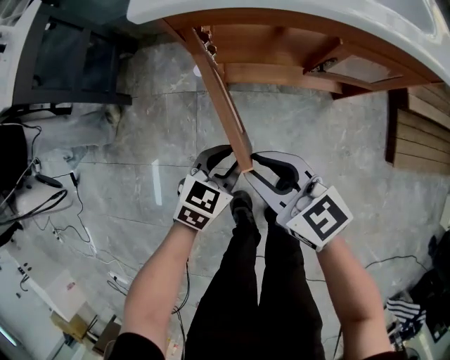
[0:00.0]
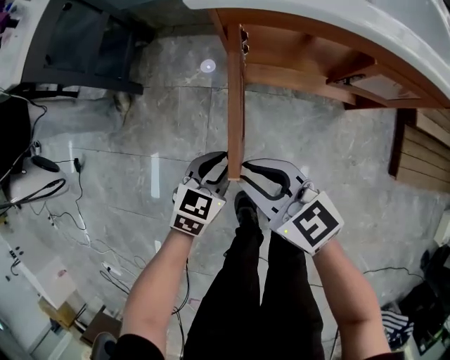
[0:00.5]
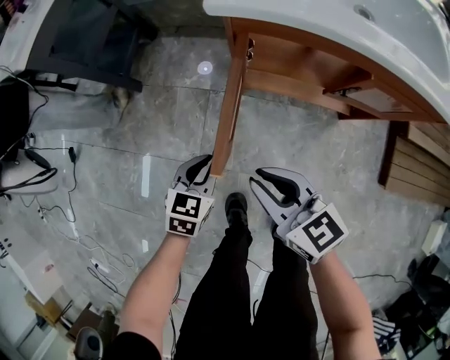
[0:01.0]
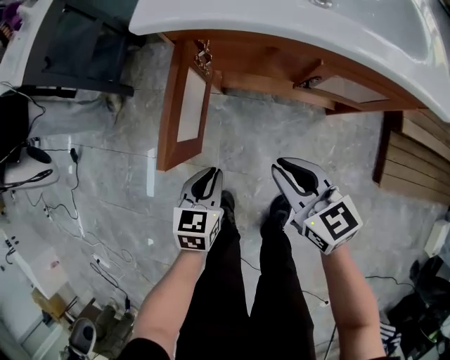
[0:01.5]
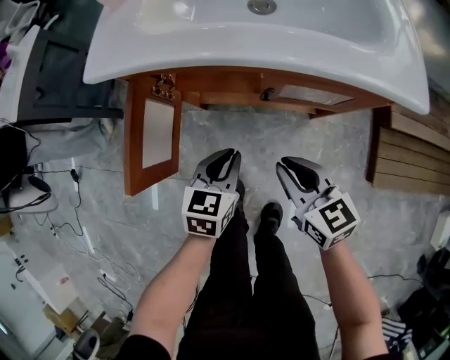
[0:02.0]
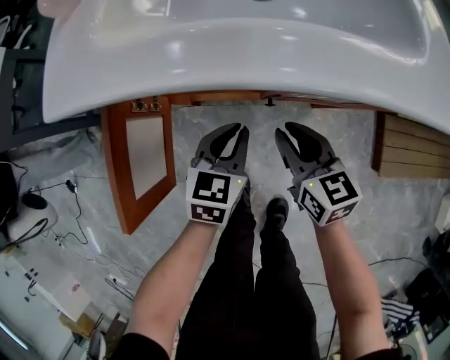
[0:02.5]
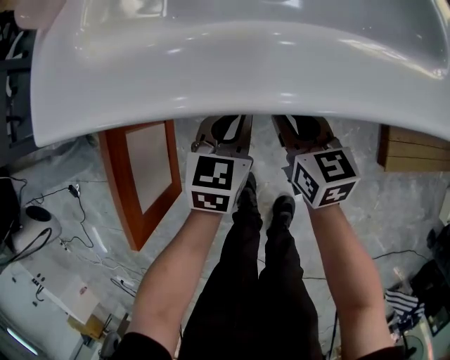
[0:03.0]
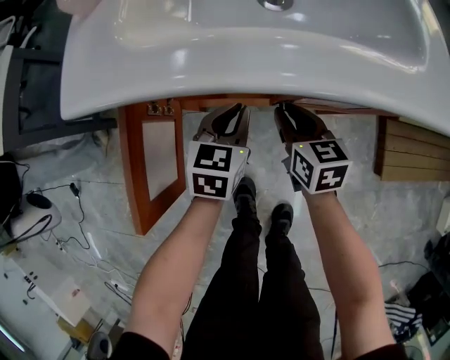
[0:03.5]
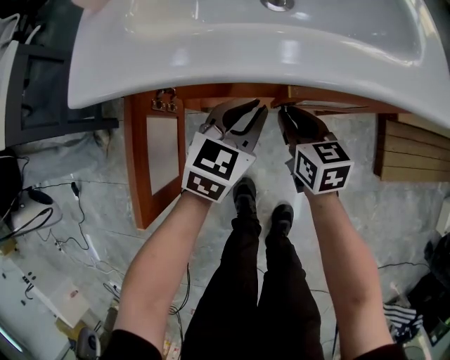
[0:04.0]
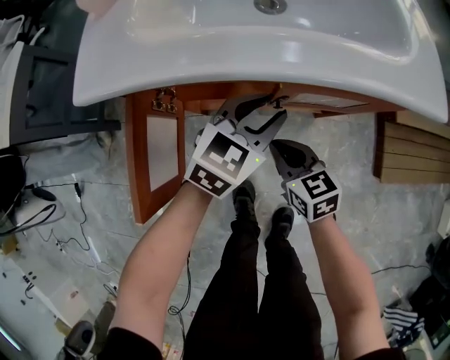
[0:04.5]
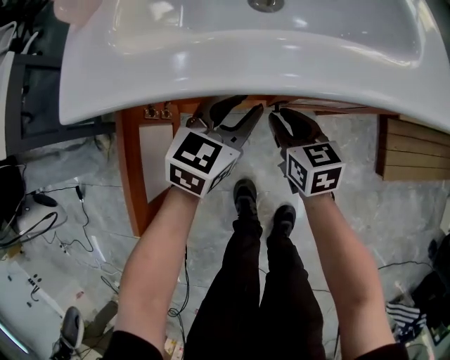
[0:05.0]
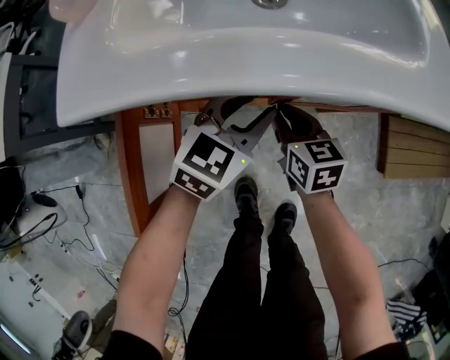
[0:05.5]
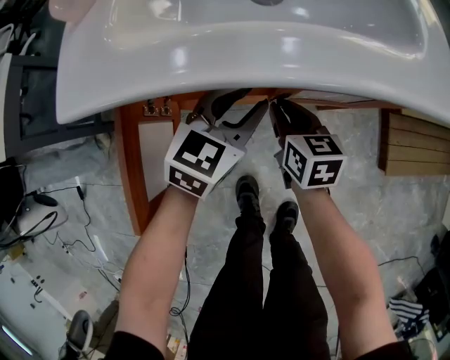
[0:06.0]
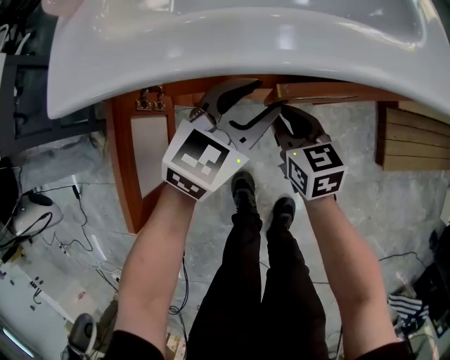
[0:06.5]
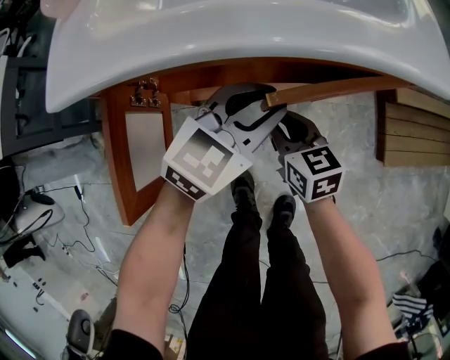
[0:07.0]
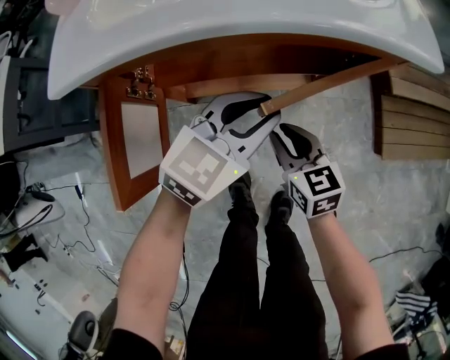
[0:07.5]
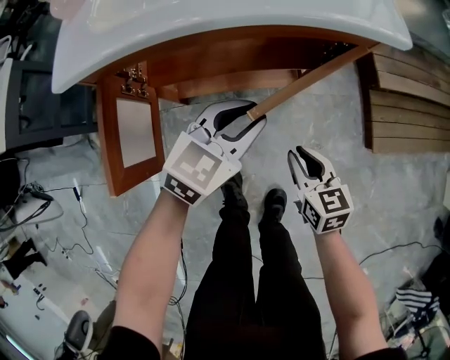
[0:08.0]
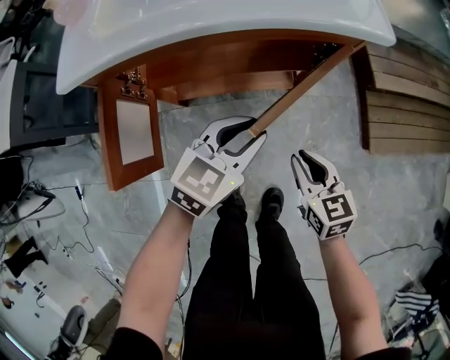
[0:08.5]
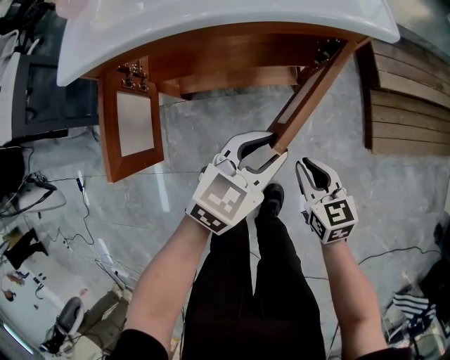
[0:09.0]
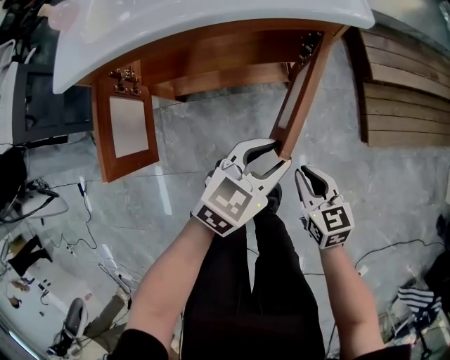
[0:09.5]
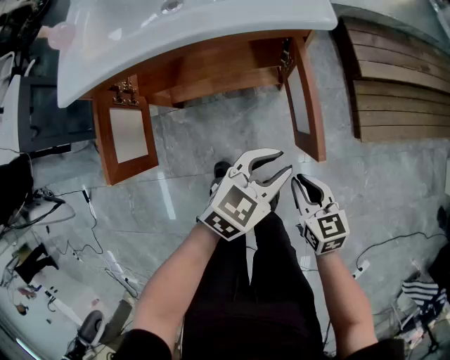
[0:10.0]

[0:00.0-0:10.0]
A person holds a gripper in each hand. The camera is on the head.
0:00.0 to 0:02.0: The right gripper is displaced to the right by some 25 cm. The left gripper is displaced to the right by approximately 15 cm, and changes its angle by some 20 degrees.
0:02.0 to 0:04.0: The right gripper shifts about 15 cm forward and downward, and changes its angle by some 20 degrees, while the left gripper is displaced forward by roughly 15 cm, and swivels some 20 degrees.
0:04.0 to 0:06.0: The left gripper opens; the right gripper travels backward and back again, roughly 10 cm each way.
0:06.0 to 0:08.0: The left gripper moves to the right and backward, about 15 cm. The right gripper is displaced backward and to the right by roughly 25 cm.
0:08.0 to 0:10.0: Both grippers travel together to the right and backward, roughly 15 cm.

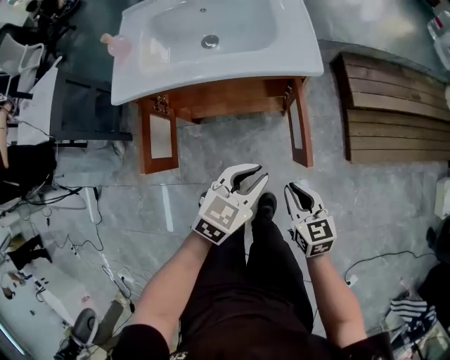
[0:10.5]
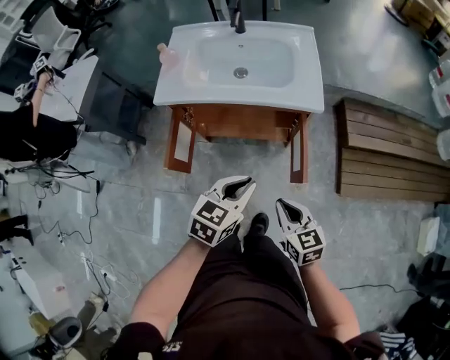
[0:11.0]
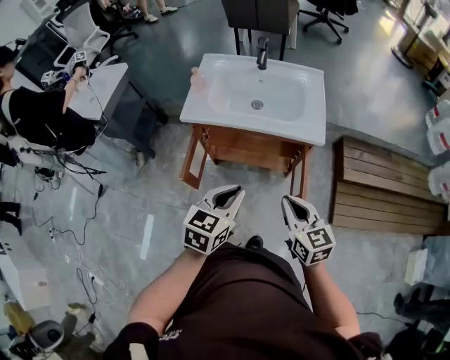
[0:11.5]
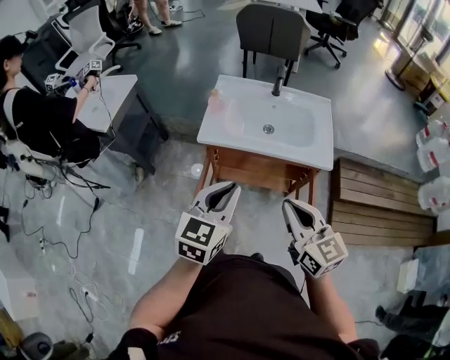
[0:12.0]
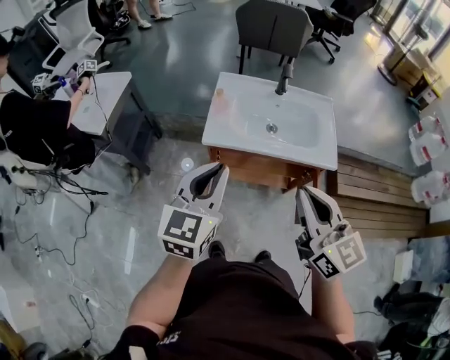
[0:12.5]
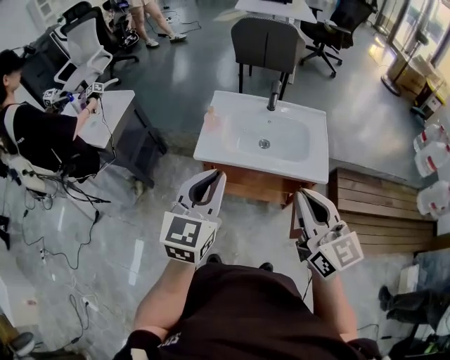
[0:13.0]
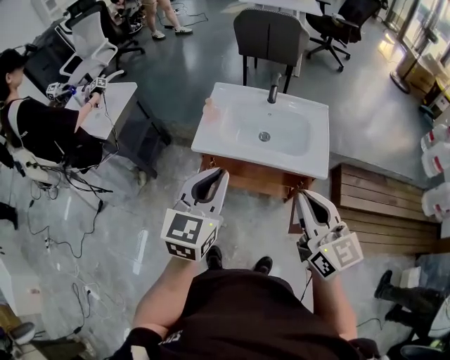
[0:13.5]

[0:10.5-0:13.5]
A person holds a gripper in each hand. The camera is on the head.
0:10.5 to 0:12.0: Both grippers move upward and to the left, about 40 cm. The right gripper rotates approximately 30 degrees; the left gripper swivels approximately 40 degrees.
0:12.0 to 0:13.5: The left gripper travels upward and forward by roughly 10 cm, and reaches about 10 cm to the left, then returns. Meanwhile the right gripper heads upward and to the right, covering about 10 cm.

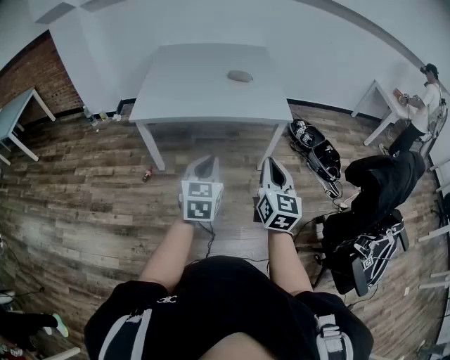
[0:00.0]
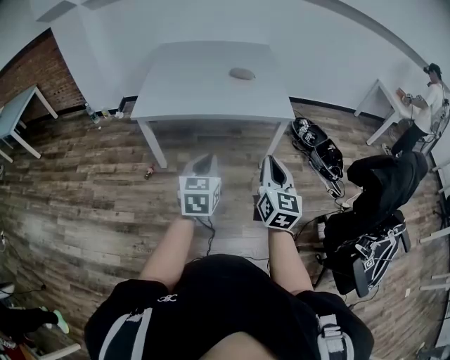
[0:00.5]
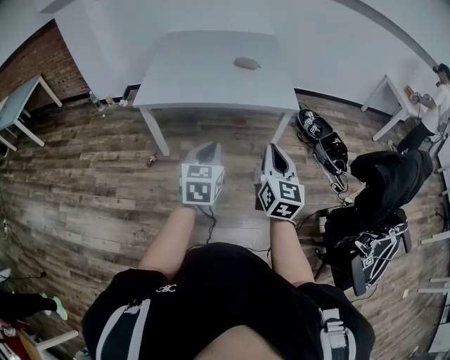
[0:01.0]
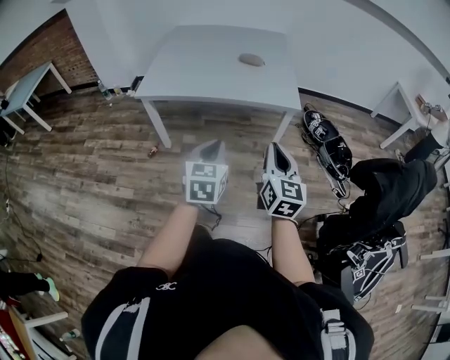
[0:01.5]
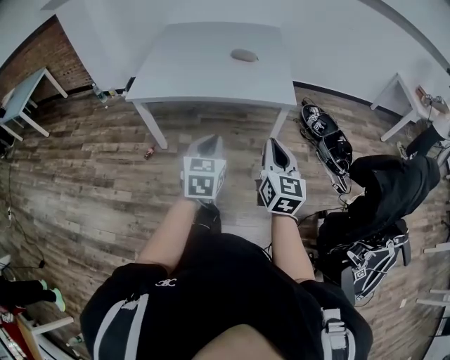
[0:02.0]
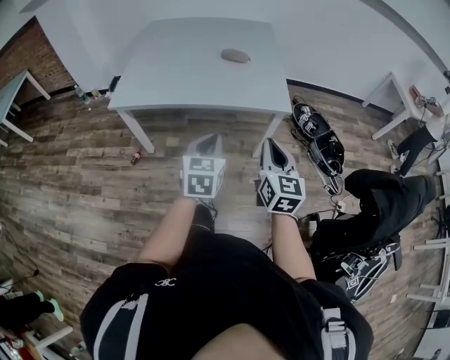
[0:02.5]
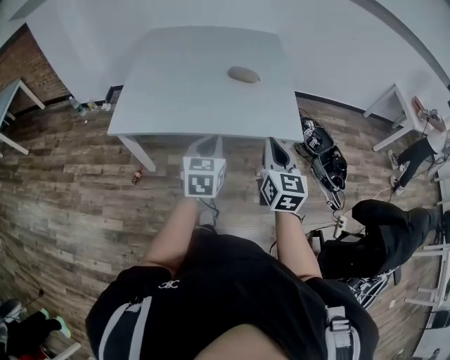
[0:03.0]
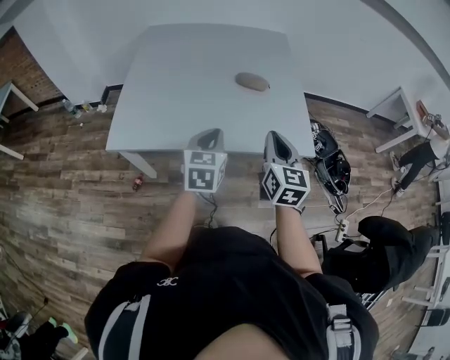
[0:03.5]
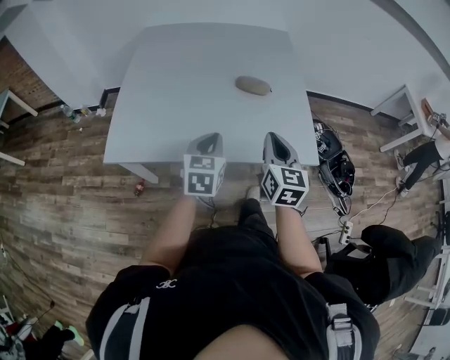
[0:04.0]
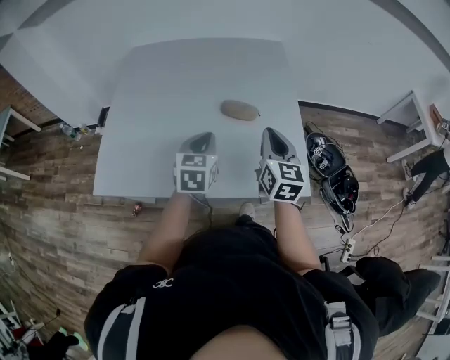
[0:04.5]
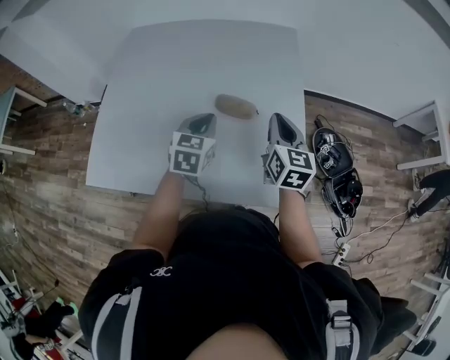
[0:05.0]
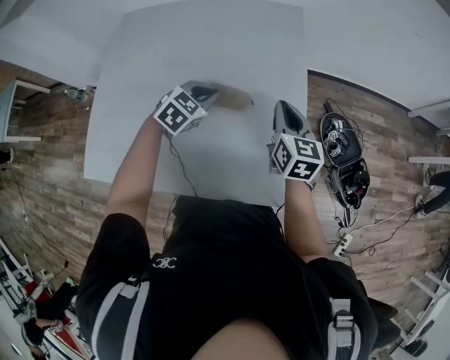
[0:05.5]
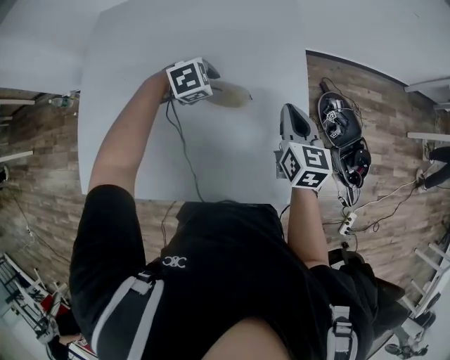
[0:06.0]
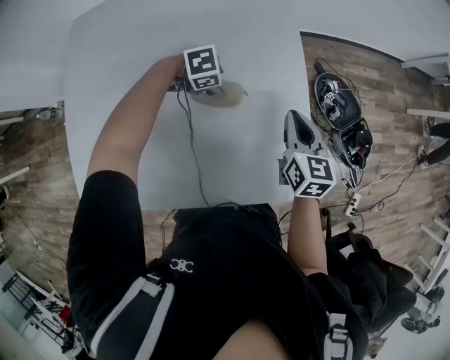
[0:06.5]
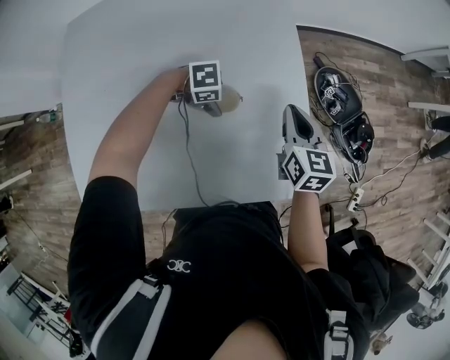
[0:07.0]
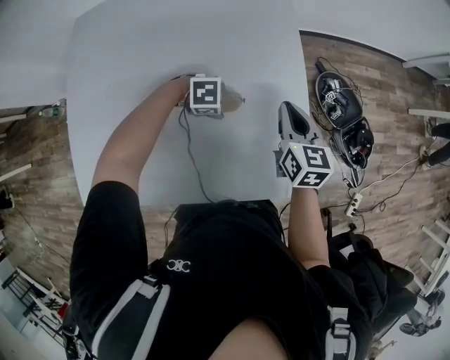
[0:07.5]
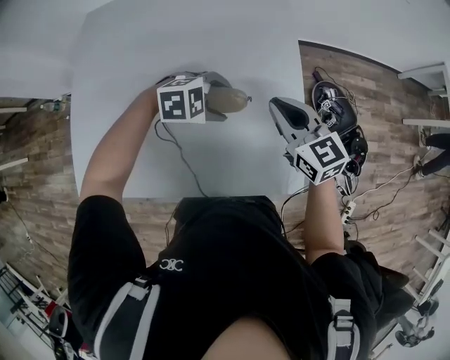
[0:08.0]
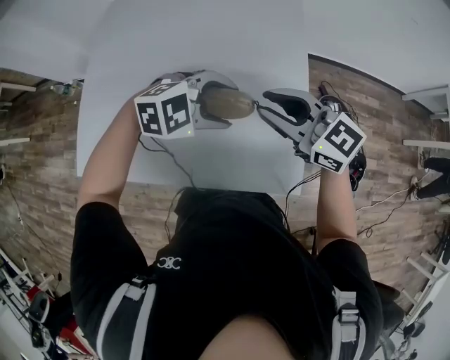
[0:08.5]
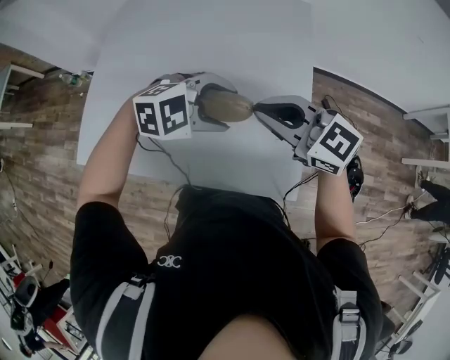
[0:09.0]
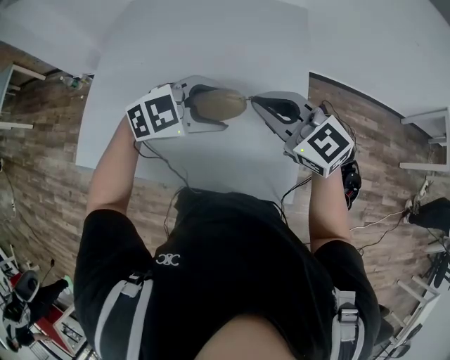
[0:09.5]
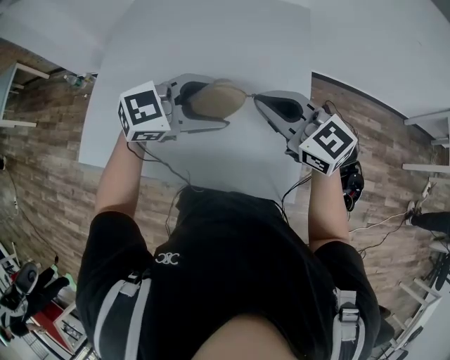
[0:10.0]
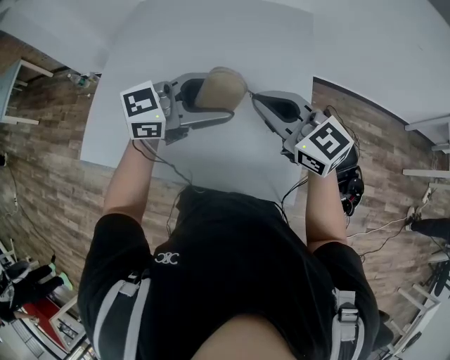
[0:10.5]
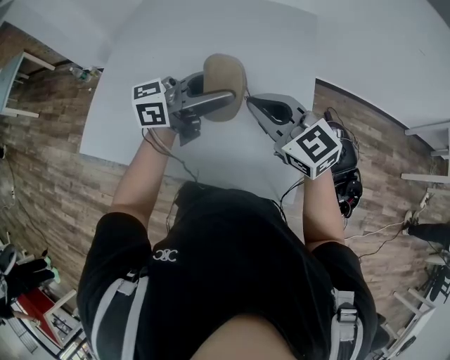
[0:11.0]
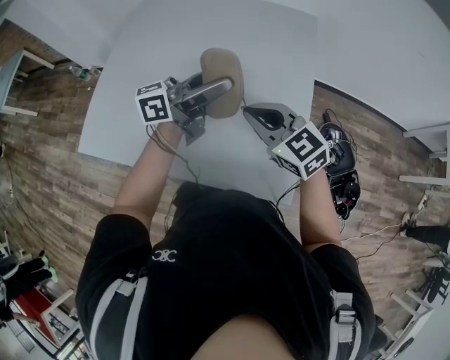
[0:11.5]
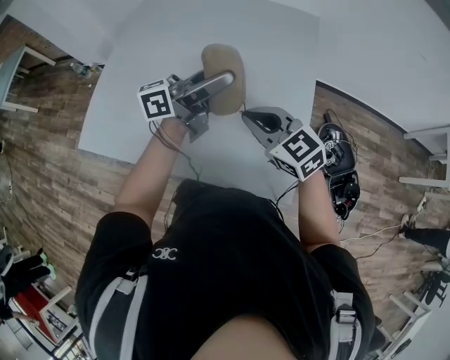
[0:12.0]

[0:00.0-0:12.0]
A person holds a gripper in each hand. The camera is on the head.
0:00.0 to 0:02.0: The grippers both shift to the right and forward by approximately 15 cm.
0:02.0 to 0:04.0: The pair of grippers is taken forward, approximately 50 cm.
0:04.0 to 0:06.0: The two grippers travel together, roughly 50 cm. The left gripper tilts its fingers about 40 degrees downward.
0:06.0 to 0:08.0: The right gripper changes place by roughly 5 cm, and swivels approximately 30 degrees; the left gripper travels downward and back again, approximately 10 cm each way, swivels roughly 20 degrees, and opens its fingers.
0:08.0 to 0:10.0: The right gripper heads upward, covering approximately 10 cm, and rotates some 30 degrees, while the left gripper shifts approximately 20 cm upward, and points its fingers about 30 degrees further upward.
0:10.0 to 0:12.0: The left gripper changes place by about 5 cm, and tips its fingers upward by about 40 degrees. Meanwhile the right gripper travels downward by some 10 cm.

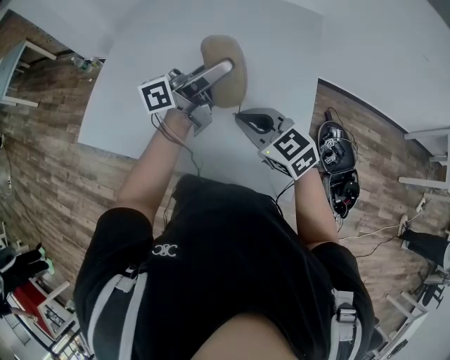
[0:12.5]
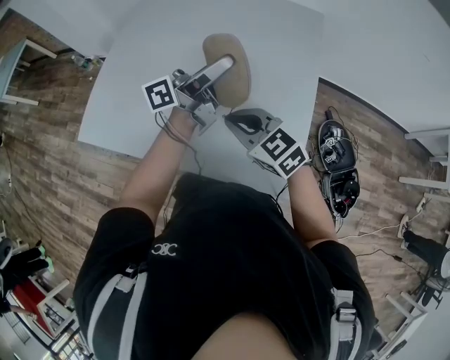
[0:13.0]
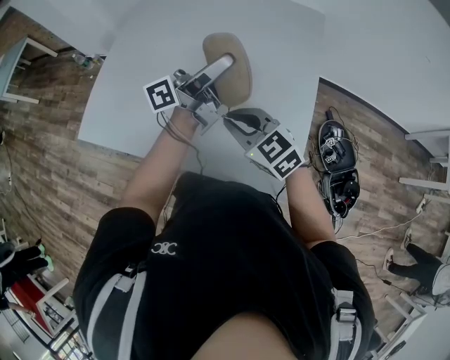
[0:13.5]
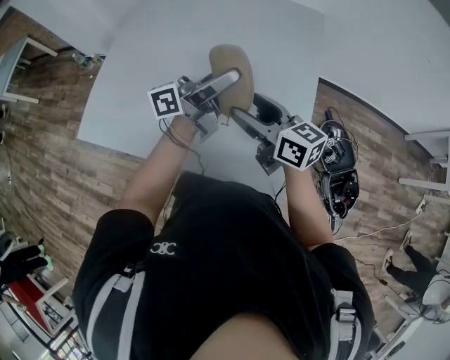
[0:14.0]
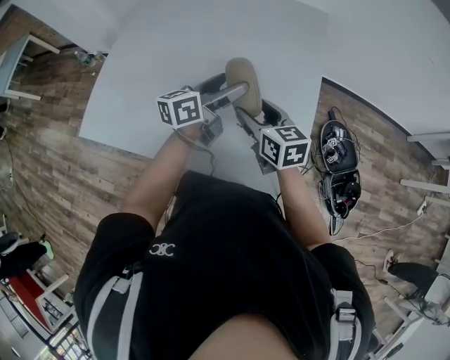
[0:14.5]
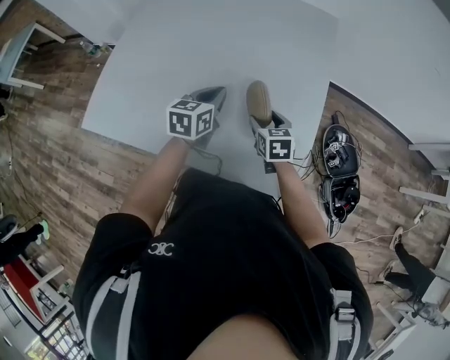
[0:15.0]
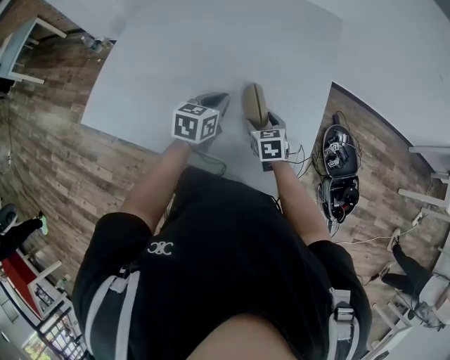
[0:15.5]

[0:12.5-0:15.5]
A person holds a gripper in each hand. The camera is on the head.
0:12.5 to 0:14.0: The right gripper changes its angle by approximately 40 degrees, and opens up.
0:14.0 to 0:15.5: Both grippers travel together downward, roughly 20 cm. The left gripper points its fingers about 60 degrees further downward, and closes its fingers, while the right gripper tips its fingers downward by some 40 degrees.
